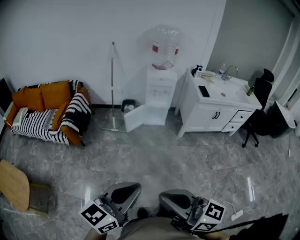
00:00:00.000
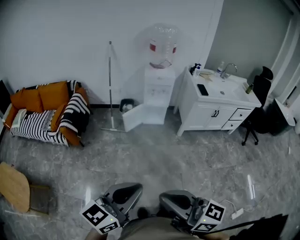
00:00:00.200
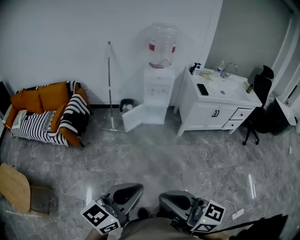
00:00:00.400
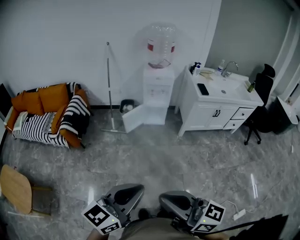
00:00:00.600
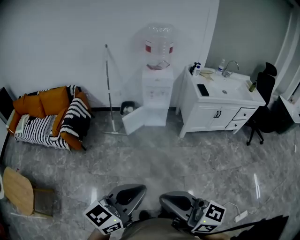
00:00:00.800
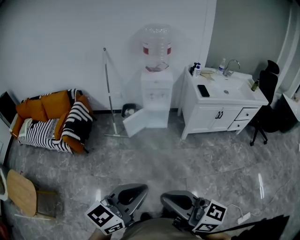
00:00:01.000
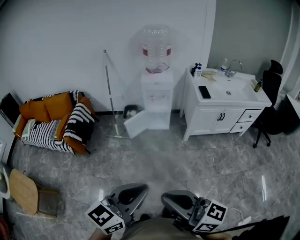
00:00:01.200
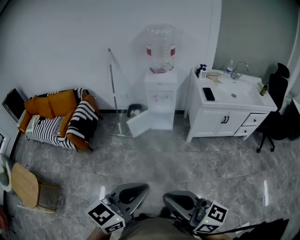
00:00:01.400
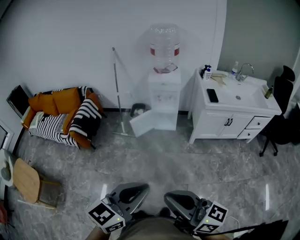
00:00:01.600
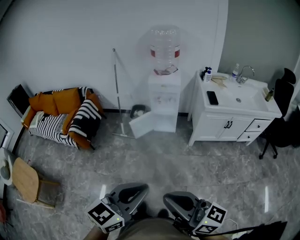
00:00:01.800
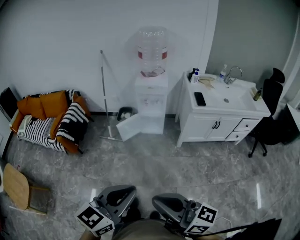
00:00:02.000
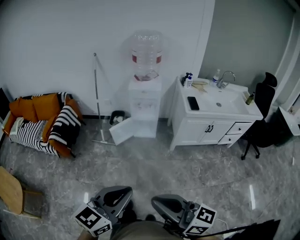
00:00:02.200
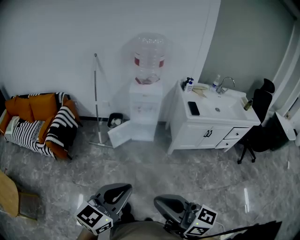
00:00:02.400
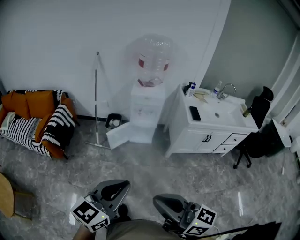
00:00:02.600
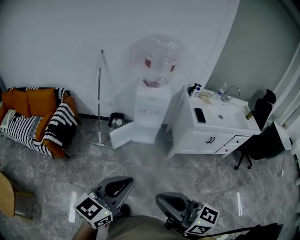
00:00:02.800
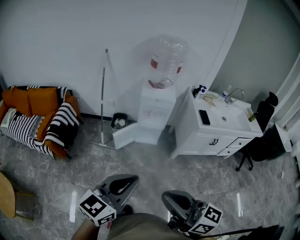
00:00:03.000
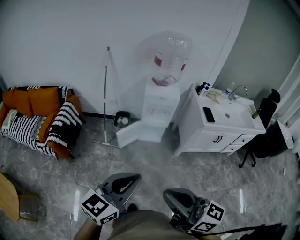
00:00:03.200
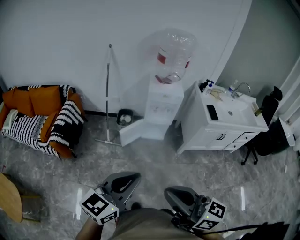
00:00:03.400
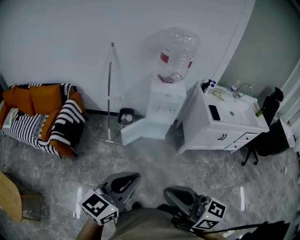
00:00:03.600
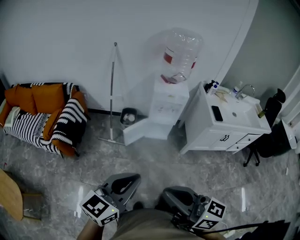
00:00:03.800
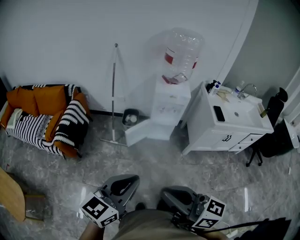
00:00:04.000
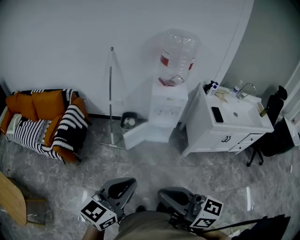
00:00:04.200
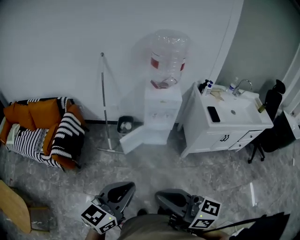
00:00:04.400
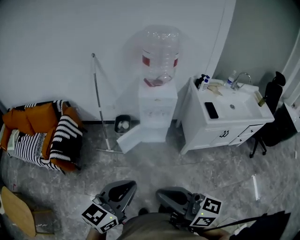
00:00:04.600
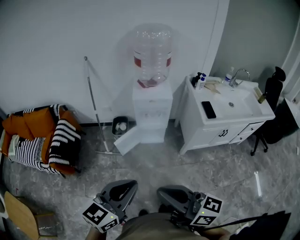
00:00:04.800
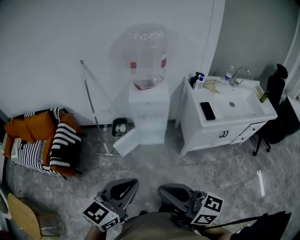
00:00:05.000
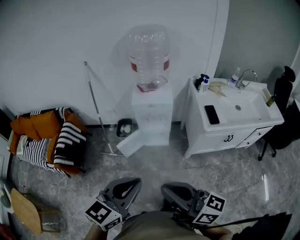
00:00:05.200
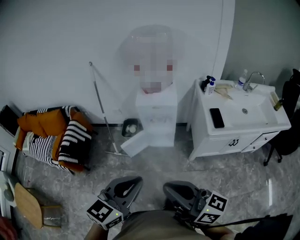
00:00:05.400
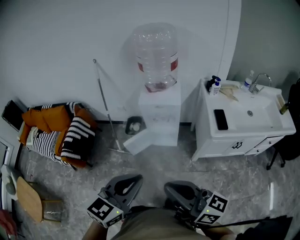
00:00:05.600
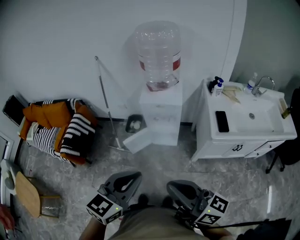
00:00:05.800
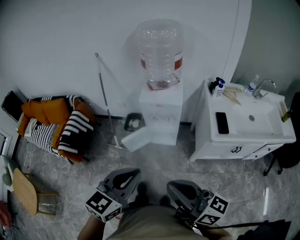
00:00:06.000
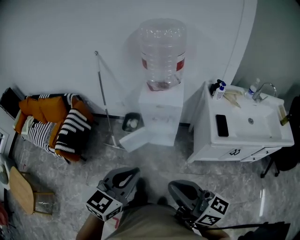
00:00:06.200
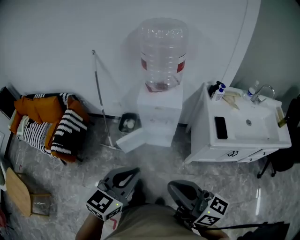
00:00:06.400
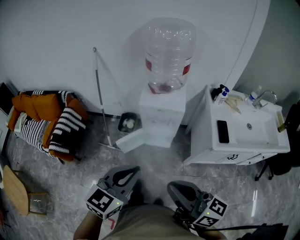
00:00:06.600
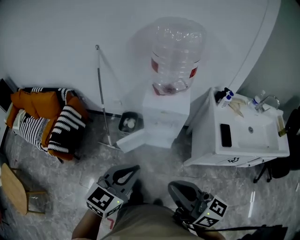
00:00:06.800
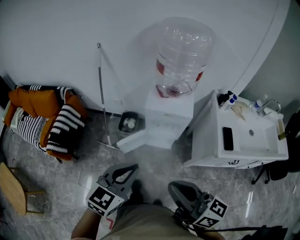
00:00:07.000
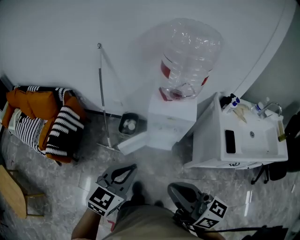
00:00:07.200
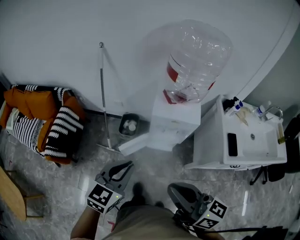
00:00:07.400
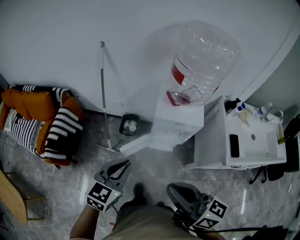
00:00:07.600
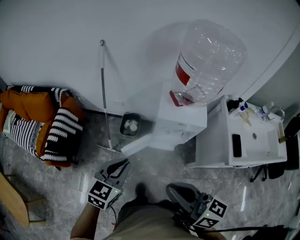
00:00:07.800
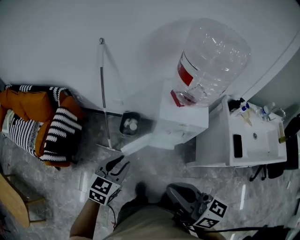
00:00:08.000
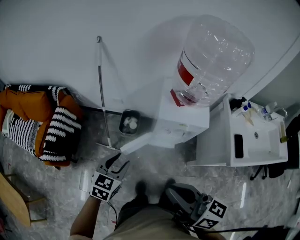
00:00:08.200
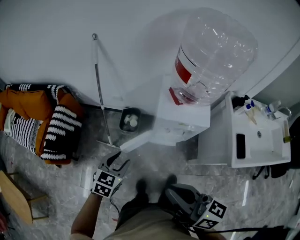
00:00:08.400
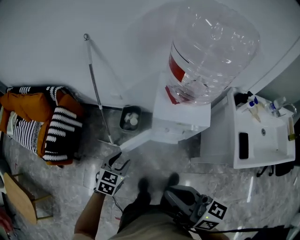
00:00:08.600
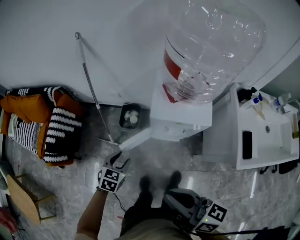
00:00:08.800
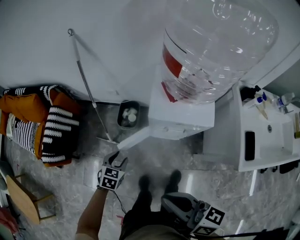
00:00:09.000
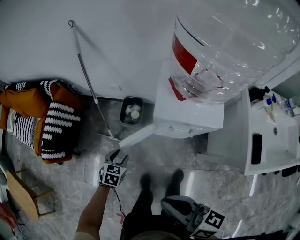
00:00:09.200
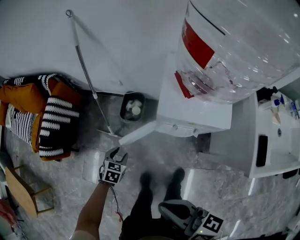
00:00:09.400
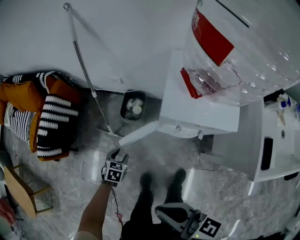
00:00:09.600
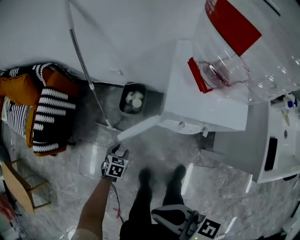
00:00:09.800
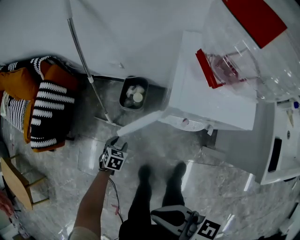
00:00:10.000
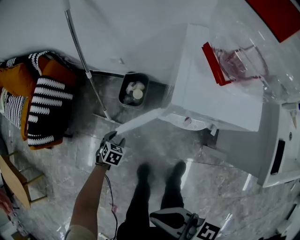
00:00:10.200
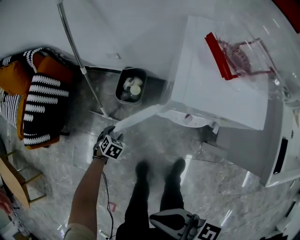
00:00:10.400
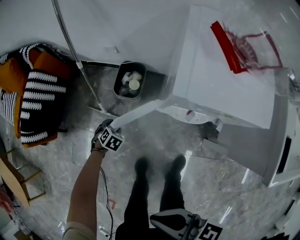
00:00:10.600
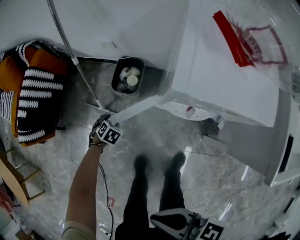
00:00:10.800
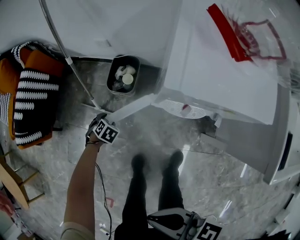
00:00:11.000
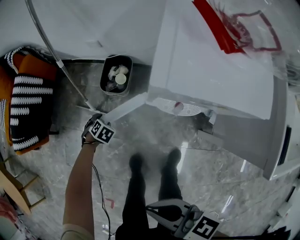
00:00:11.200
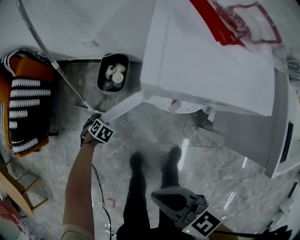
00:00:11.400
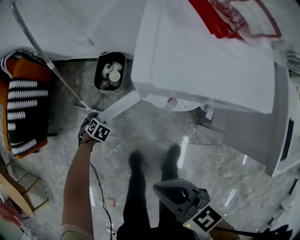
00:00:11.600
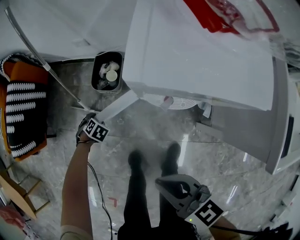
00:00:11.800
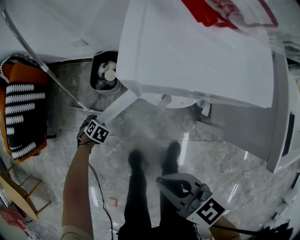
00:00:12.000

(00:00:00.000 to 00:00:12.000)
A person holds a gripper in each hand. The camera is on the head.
00:00:00.000 - 00:00:01.600: The two grippers go approximately 20 cm to the right and forward.
00:00:01.600 - 00:00:03.000: The two grippers go about 20 cm forward and to the left.
00:00:03.000 - 00:00:04.400: The two grippers go about 5 cm forward.
00:00:04.400 - 00:00:06.000: Both grippers move to the right and forward, approximately 25 cm.
00:00:06.000 - 00:00:07.600: The left gripper goes about 30 cm forward, to the left and downward; the right gripper moves forward and to the left, some 25 cm.
00:00:07.600 - 00:00:09.000: The right gripper is displaced downward and forward by some 15 cm. The left gripper moves downward, roughly 30 cm, swivels some 30 degrees, and opens.
00:00:09.000 - 00:00:10.400: The left gripper moves downward, roughly 30 cm, and rotates about 20 degrees, while the right gripper heads downward, covering approximately 15 cm.
00:00:10.400 - 00:00:12.000: The grippers both shift downward by approximately 10 cm. The right gripper turns by about 20 degrees.

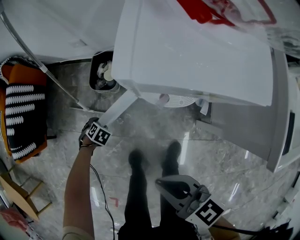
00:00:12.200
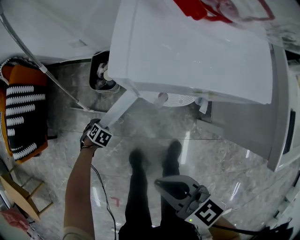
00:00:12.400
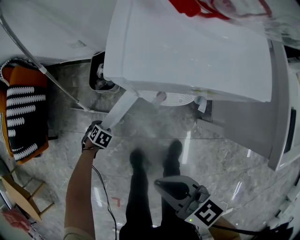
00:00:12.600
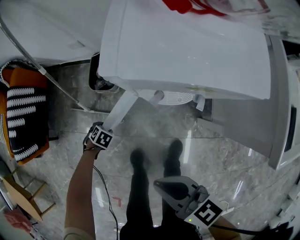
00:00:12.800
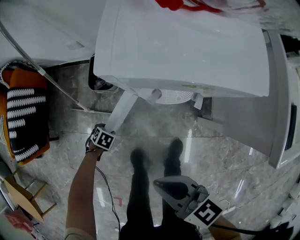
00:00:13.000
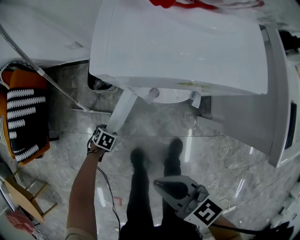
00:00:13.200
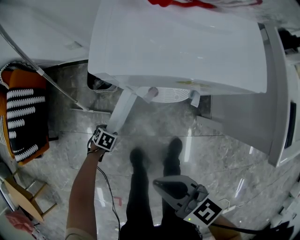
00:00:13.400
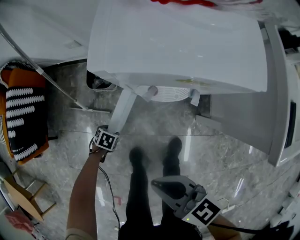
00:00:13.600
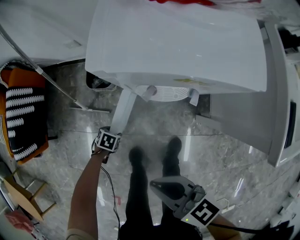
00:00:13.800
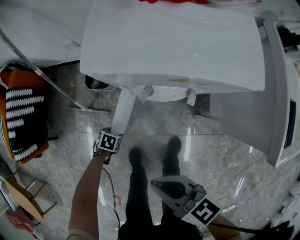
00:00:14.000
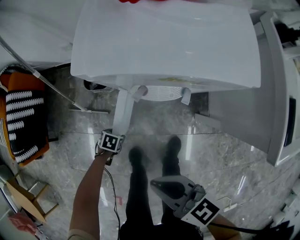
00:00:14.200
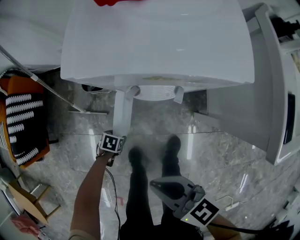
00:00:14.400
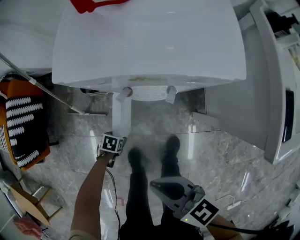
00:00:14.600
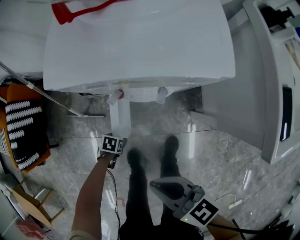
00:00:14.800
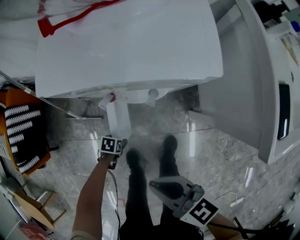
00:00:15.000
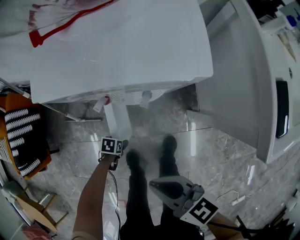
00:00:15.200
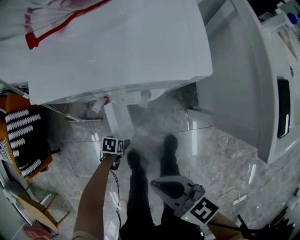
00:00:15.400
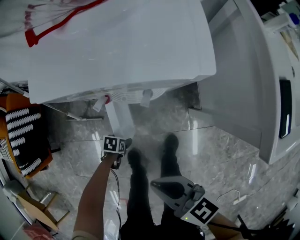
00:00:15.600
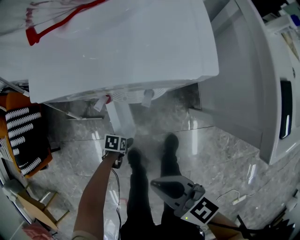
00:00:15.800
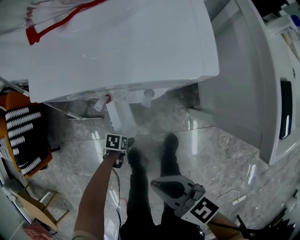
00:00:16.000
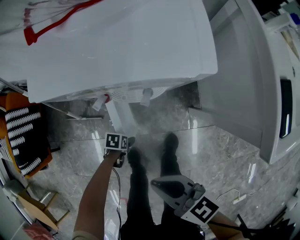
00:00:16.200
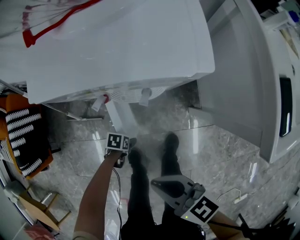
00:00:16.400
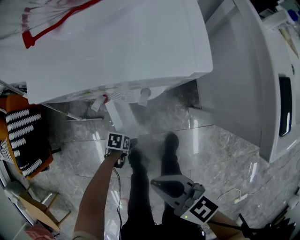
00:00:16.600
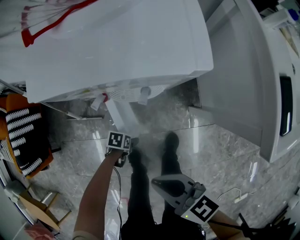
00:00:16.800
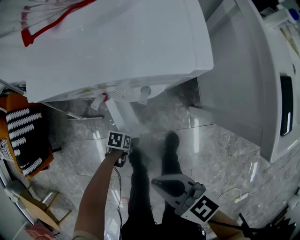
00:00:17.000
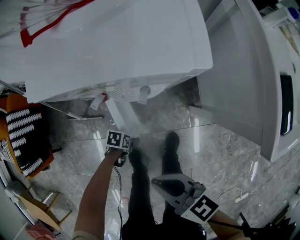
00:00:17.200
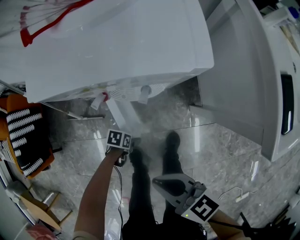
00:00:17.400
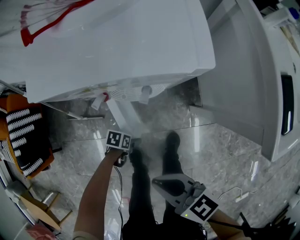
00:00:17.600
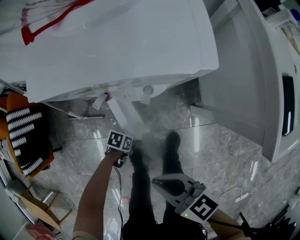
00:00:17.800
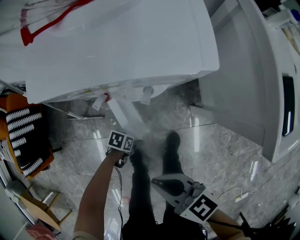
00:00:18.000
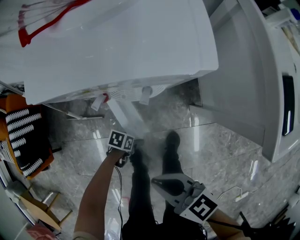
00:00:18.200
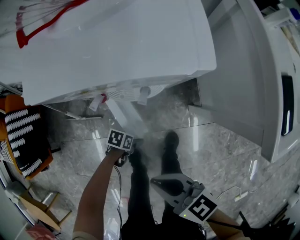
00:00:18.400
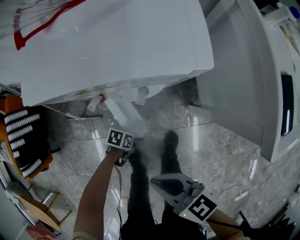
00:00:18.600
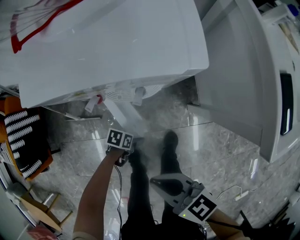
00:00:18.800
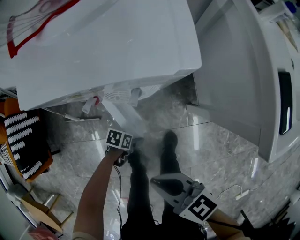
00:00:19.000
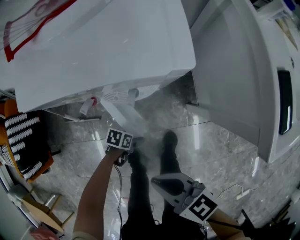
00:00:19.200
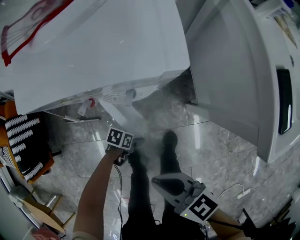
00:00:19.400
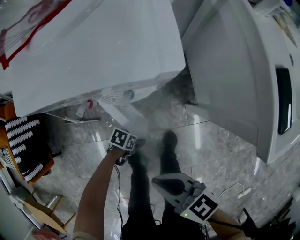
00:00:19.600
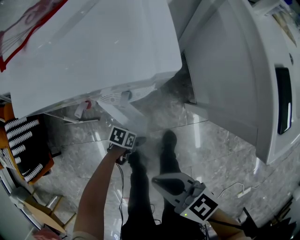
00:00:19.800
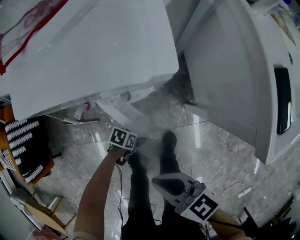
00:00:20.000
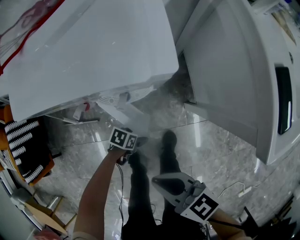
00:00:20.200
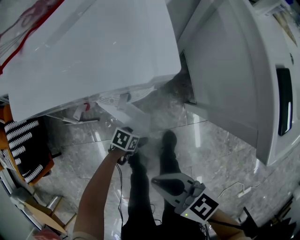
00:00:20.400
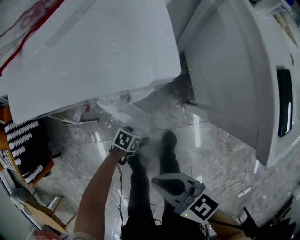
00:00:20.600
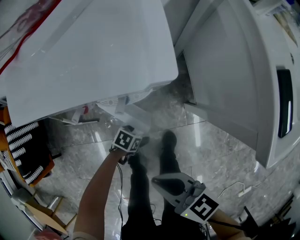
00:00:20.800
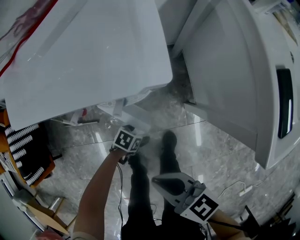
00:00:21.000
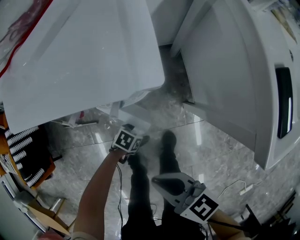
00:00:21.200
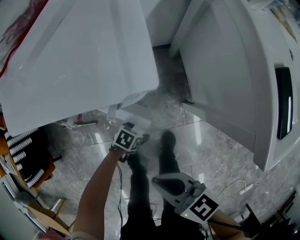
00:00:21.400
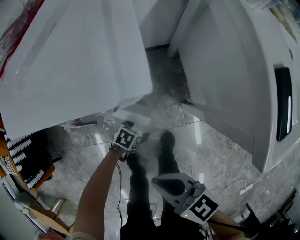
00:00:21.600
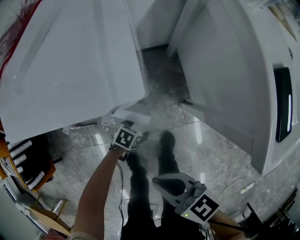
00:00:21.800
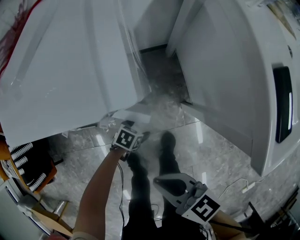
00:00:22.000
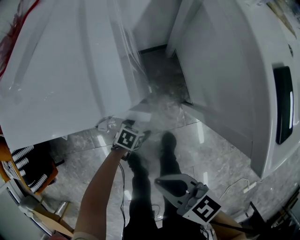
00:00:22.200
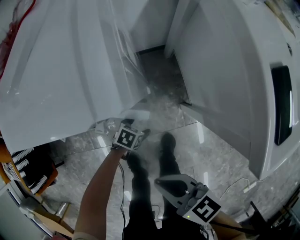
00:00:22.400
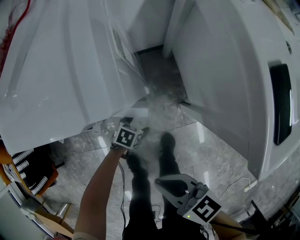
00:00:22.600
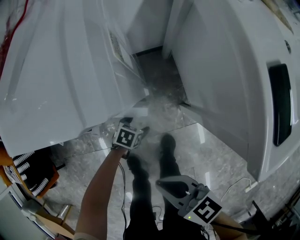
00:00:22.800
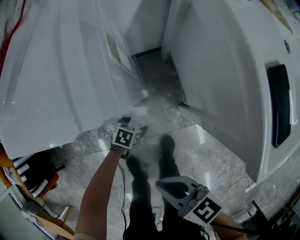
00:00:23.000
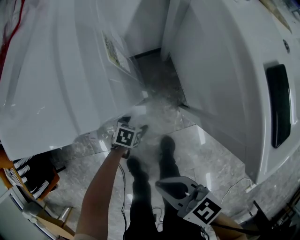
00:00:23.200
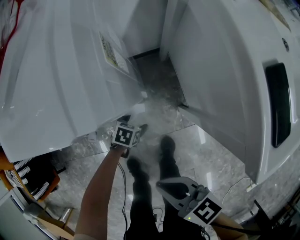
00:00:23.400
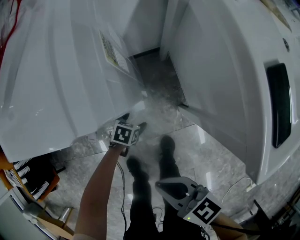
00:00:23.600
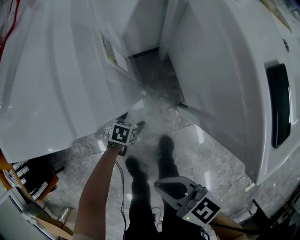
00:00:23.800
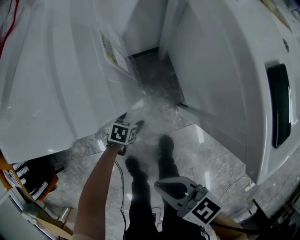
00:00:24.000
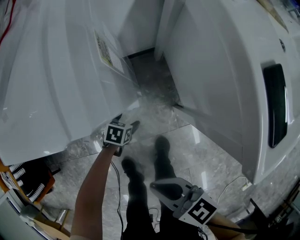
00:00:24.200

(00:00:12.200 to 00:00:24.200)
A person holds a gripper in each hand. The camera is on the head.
00:00:12.200 - 00:00:13.800: The left gripper changes place by approximately 10 cm.
00:00:13.800 - 00:00:15.200: The right gripper shifts by roughly 10 cm; the left gripper ends up some 10 cm from where it was.
00:00:15.200 - 00:00:16.600: The grippers stay close to where they were, moving slightly.
00:00:16.600 - 00:00:18.200: There are only small adjustments of the grippers.
00:00:18.200 - 00:00:19.800: The left gripper changes place by about 5 cm.
00:00:19.800 - 00:00:21.200: The grippers make only small movements.
00:00:21.200 - 00:00:22.600: The left gripper ends up approximately 5 cm from where it was.
00:00:22.600 - 00:00:24.200: The left gripper moves roughly 5 cm.
